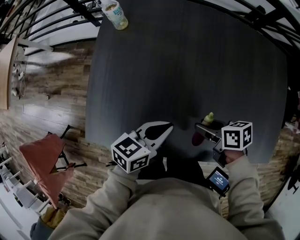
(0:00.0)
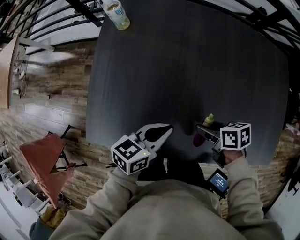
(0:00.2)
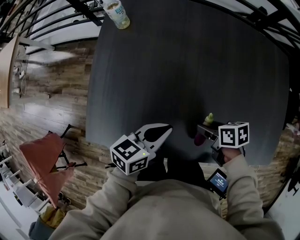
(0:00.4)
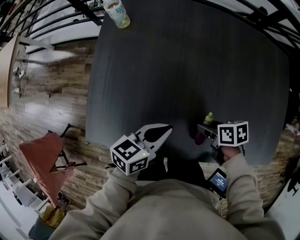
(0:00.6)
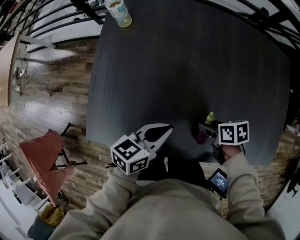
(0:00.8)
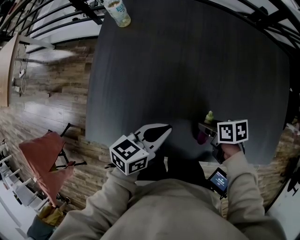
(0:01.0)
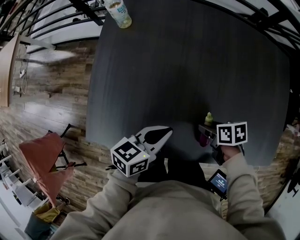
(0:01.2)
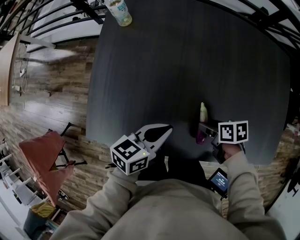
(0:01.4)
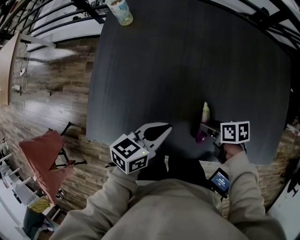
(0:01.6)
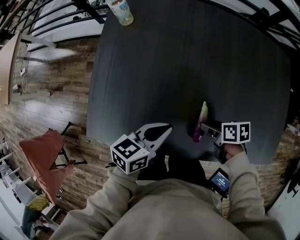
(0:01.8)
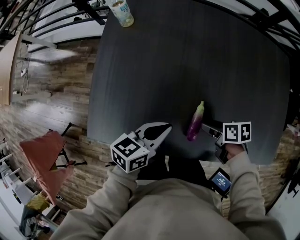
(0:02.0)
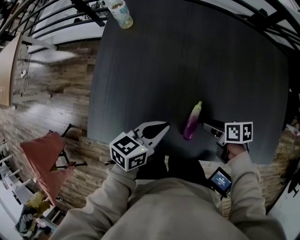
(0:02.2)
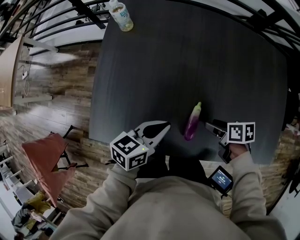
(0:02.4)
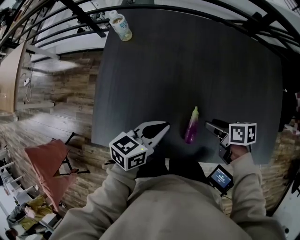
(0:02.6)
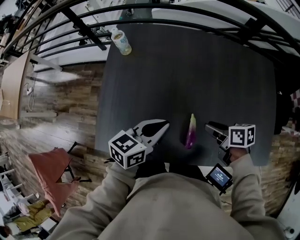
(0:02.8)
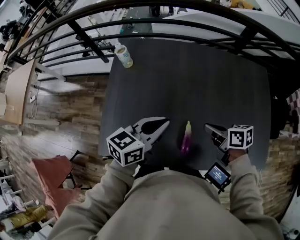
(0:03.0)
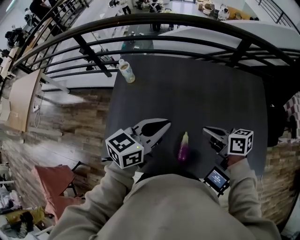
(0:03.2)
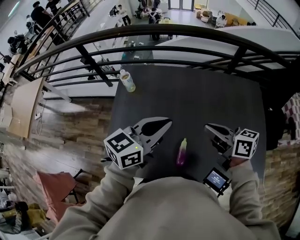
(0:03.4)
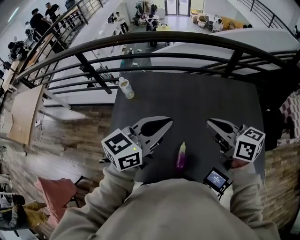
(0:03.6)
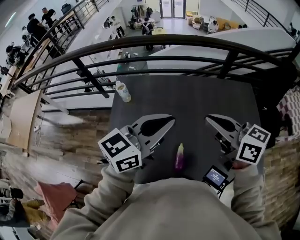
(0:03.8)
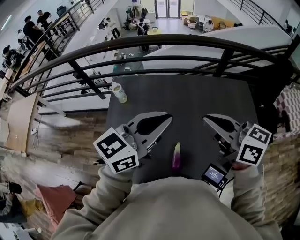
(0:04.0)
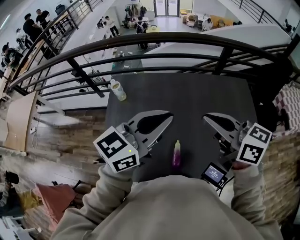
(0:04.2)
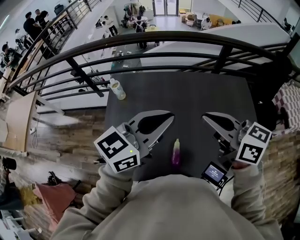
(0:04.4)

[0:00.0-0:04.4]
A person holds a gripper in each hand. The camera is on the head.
0:00.0 to 0:01.4: The right gripper moves downward, about 5 cm.
0:01.4 to 0:03.0: Both grippers travel together upward, about 15 cm. The right gripper changes its angle by some 30 degrees, and closes up.
0:03.0 to 0:04.4: Both grippers move upward, roughly 25 cm. The right gripper changes its angle by approximately 40 degrees. Meanwhile the left gripper changes its angle by about 30 degrees.

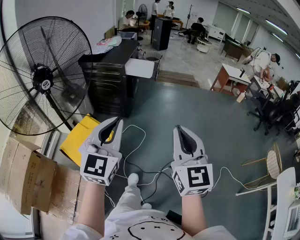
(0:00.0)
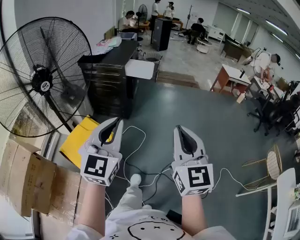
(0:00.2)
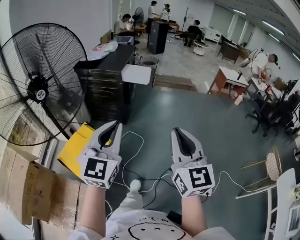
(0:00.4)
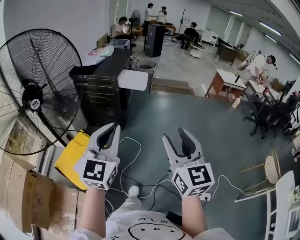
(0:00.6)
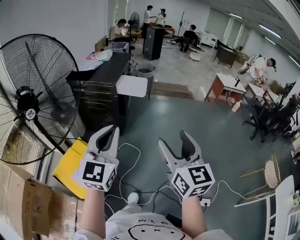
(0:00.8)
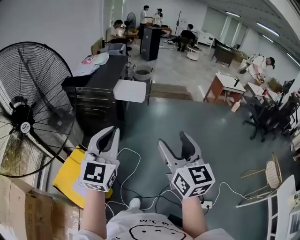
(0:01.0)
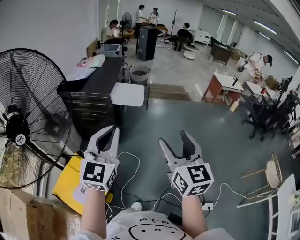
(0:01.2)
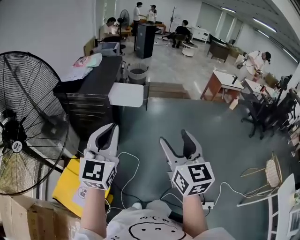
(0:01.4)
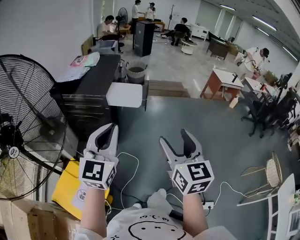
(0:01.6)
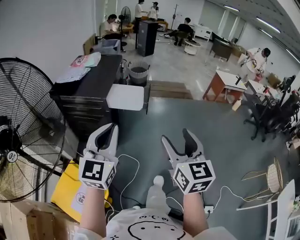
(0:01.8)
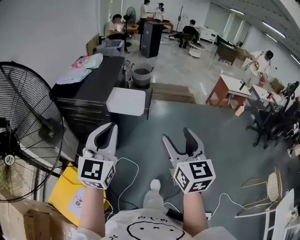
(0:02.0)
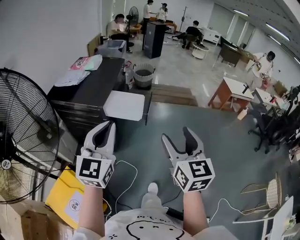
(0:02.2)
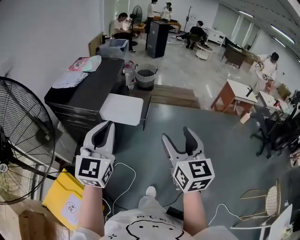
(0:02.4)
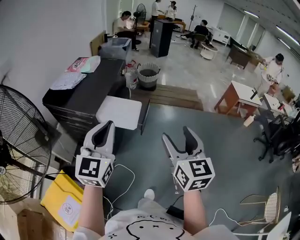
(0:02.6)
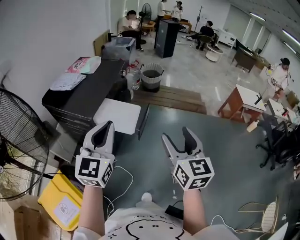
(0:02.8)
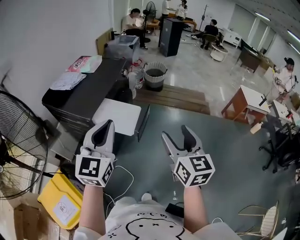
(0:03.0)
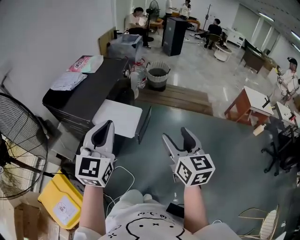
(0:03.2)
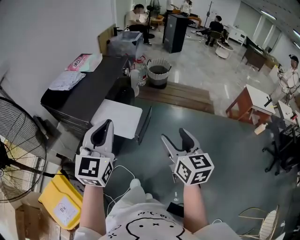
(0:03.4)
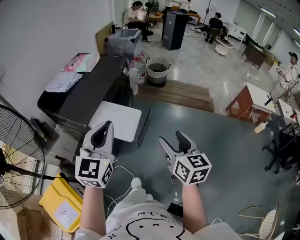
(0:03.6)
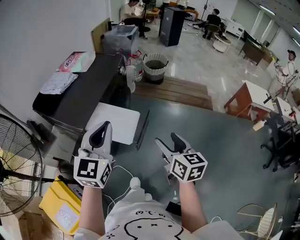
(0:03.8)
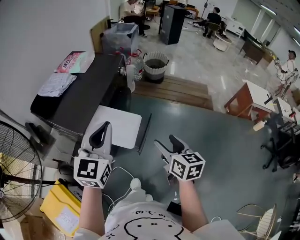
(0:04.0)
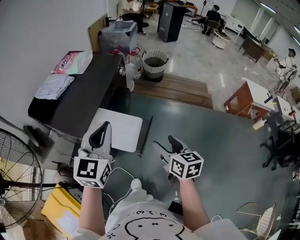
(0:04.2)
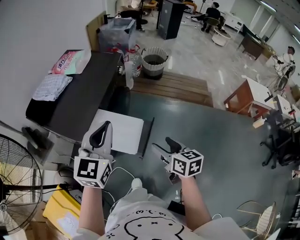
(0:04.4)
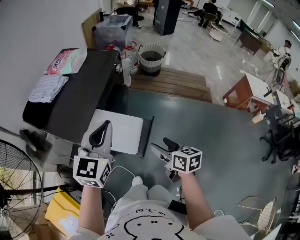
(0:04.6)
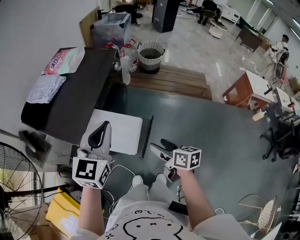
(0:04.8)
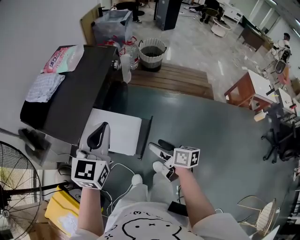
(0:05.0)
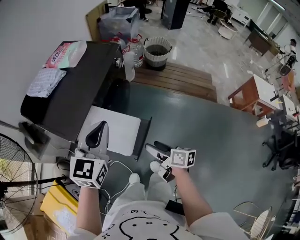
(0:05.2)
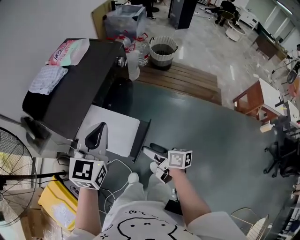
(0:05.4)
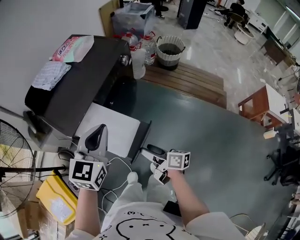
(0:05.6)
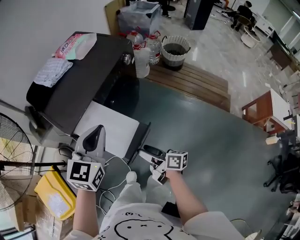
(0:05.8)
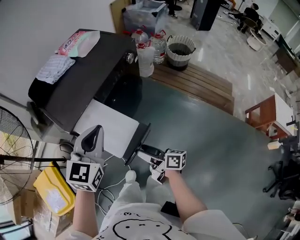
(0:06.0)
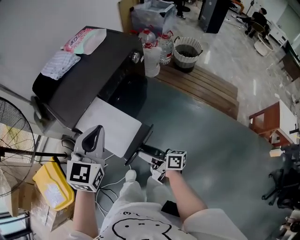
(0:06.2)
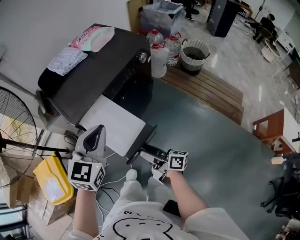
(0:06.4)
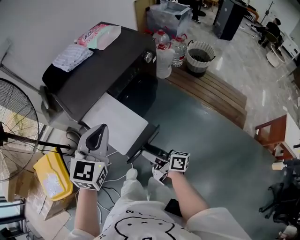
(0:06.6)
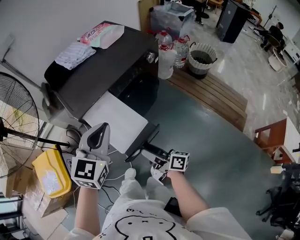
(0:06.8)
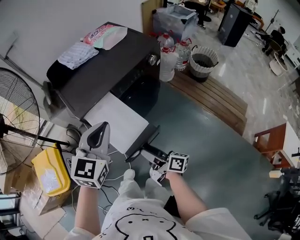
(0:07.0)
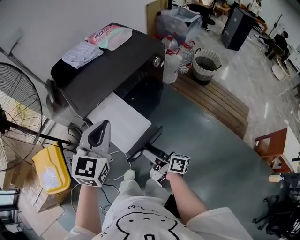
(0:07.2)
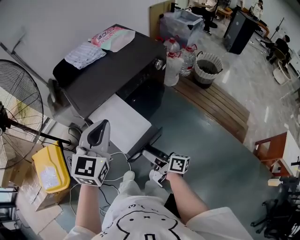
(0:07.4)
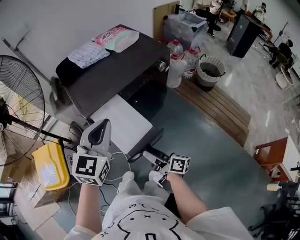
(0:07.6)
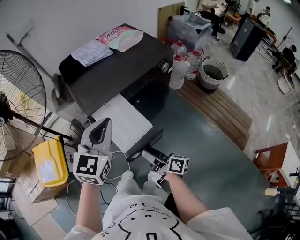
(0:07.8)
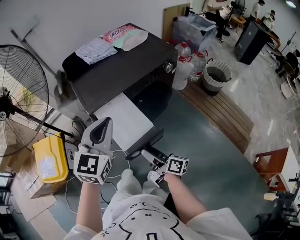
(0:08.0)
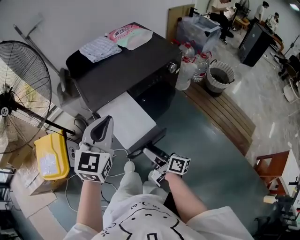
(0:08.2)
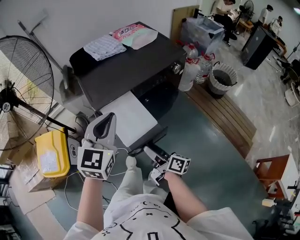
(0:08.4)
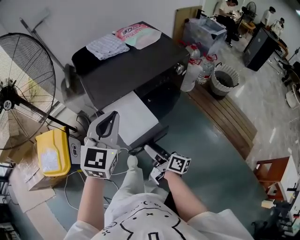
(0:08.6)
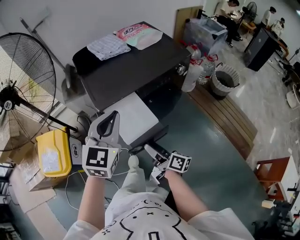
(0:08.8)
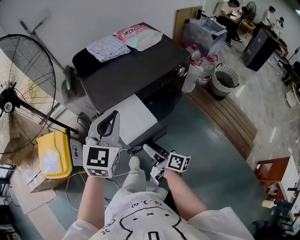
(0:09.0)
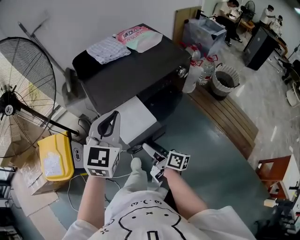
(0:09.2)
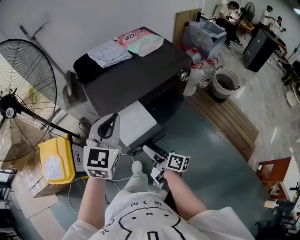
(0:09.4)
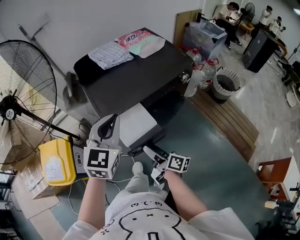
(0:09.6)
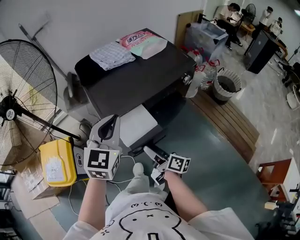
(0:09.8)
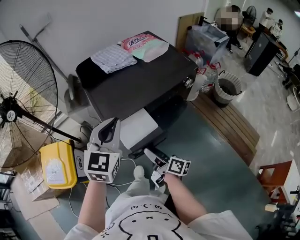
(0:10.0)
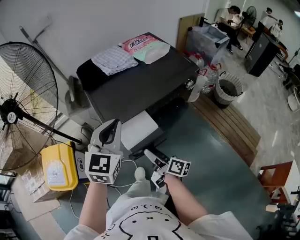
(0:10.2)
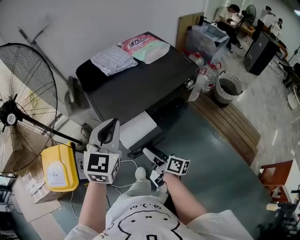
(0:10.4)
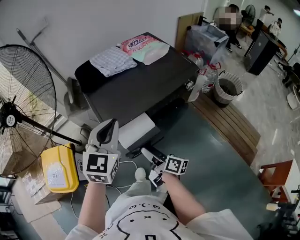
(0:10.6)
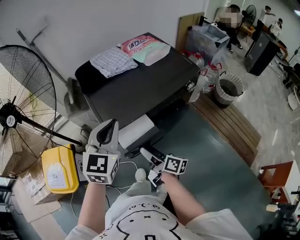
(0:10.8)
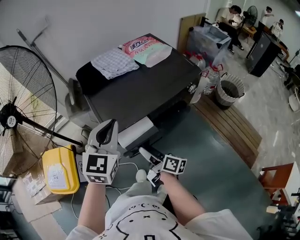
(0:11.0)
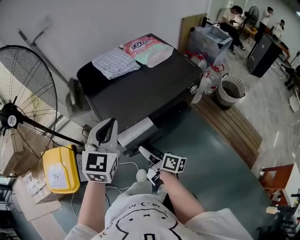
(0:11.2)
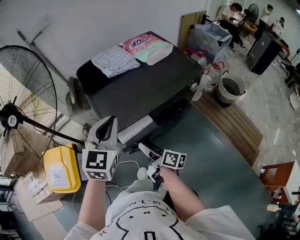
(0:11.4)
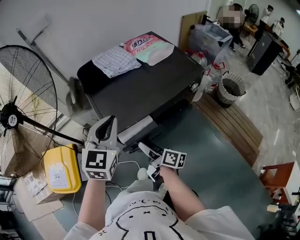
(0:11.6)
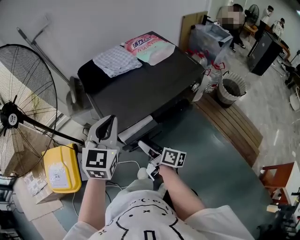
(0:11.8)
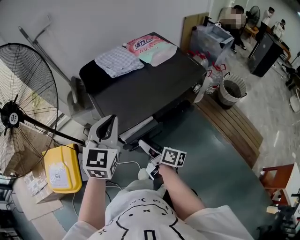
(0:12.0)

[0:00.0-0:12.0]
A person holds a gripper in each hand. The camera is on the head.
0:00.0 to 0:01.6: The grippers both shift forward by some 35 cm. The right gripper opens up.
0:01.6 to 0:03.0: The grippers both shift forward by roughly 30 cm.
0:03.0 to 0:04.4: The left gripper is displaced forward by some 20 cm. Meanwhile the right gripper goes roughly 25 cm downward and forward, and turns by about 30 degrees.
0:04.4 to 0:06.0: The left gripper moves downward, some 5 cm. Meanwhile the right gripper travels downward by some 10 cm, and rotates some 50 degrees.
0:06.0 to 0:07.6: The grippers make only small movements.
0:07.6 to 0:09.0: The right gripper moves forward, roughly 5 cm.
0:09.0 to 0:10.4: Both grippers travel together forward, some 5 cm.
0:10.4 to 0:12.0: The left gripper moves about 5 cm. The right gripper shifts some 5 cm forward.

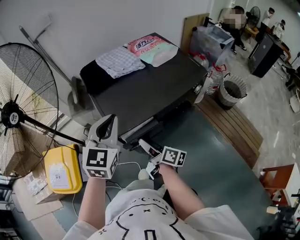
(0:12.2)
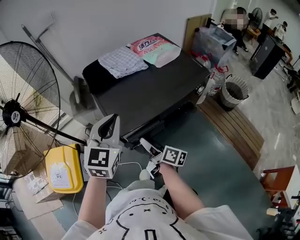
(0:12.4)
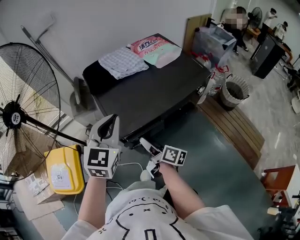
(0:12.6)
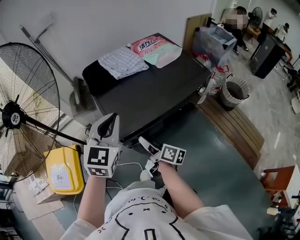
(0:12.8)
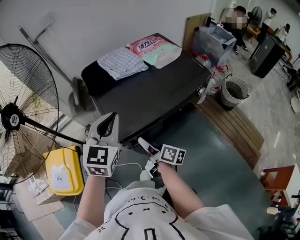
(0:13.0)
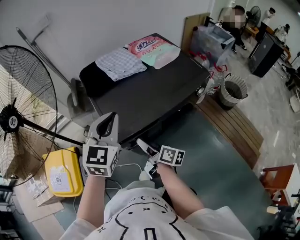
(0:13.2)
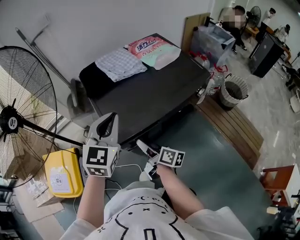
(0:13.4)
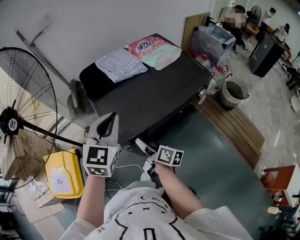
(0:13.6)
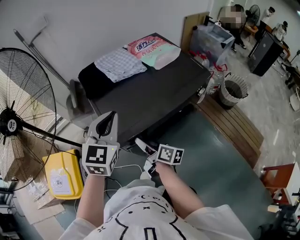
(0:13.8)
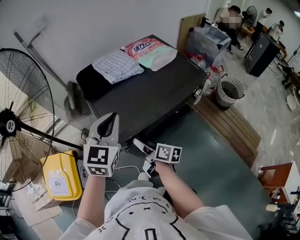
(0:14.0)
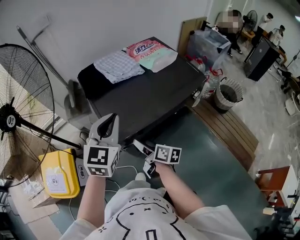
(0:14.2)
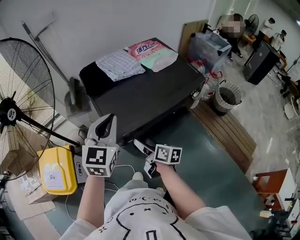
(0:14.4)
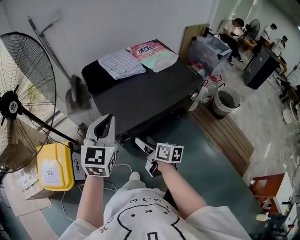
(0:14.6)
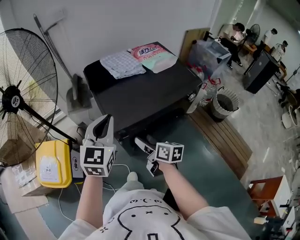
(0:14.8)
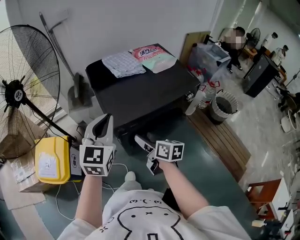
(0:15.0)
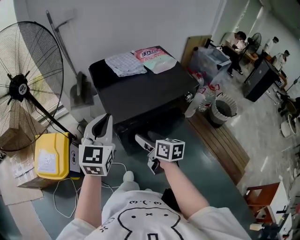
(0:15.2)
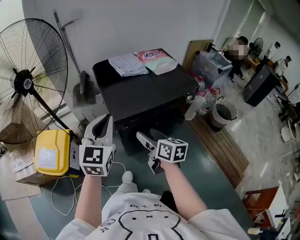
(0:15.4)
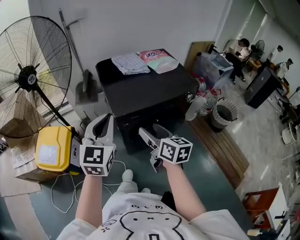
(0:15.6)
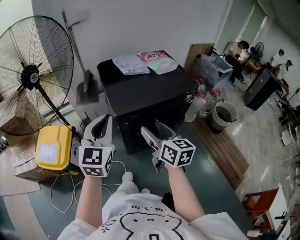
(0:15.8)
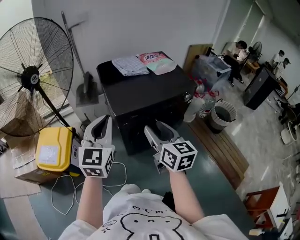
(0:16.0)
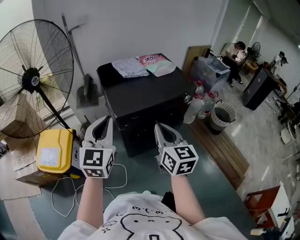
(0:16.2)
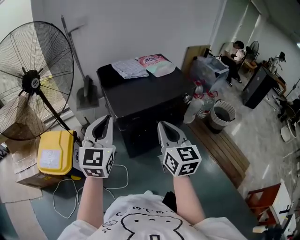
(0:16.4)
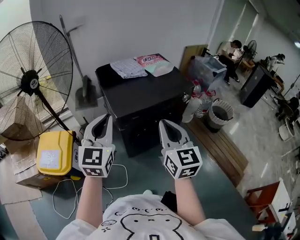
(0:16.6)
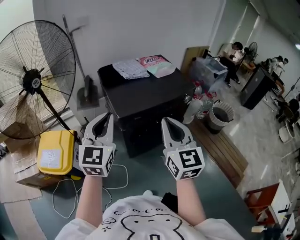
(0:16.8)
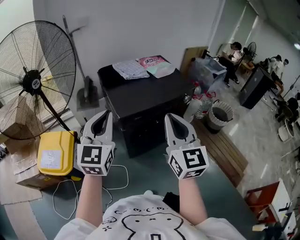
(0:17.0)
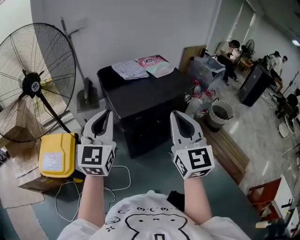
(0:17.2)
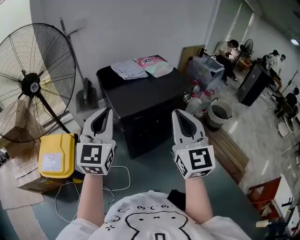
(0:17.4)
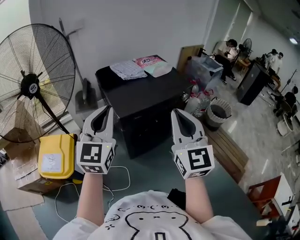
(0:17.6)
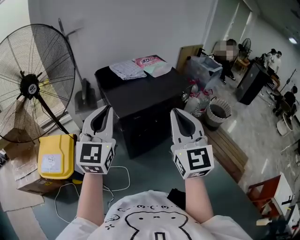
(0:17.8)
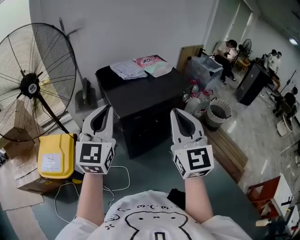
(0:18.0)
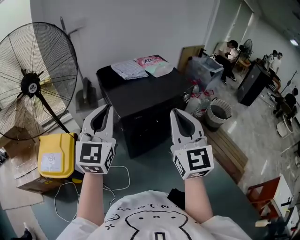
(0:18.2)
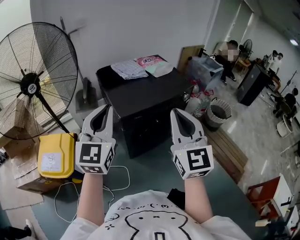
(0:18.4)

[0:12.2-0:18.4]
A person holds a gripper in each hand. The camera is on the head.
0:12.2 to 0:13.8: The right gripper ends up about 5 cm from where it was, while the left gripper goes roughly 5 cm forward.
0:13.8 to 0:15.4: The right gripper travels upward and backward by some 15 cm, and turns by about 30 degrees; the left gripper travels backward by some 15 cm.
0:15.4 to 0:16.8: The right gripper moves upward and backward, roughly 20 cm, rotates roughly 50 degrees, and closes, while the left gripper moves backward, approximately 5 cm.
0:16.8 to 0:18.4: The right gripper moves upward, some 5 cm.

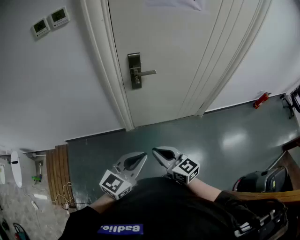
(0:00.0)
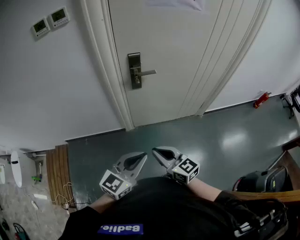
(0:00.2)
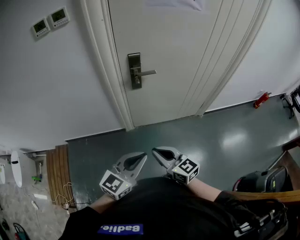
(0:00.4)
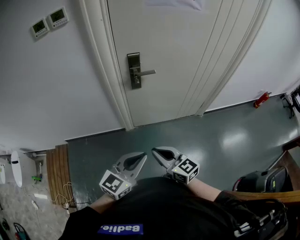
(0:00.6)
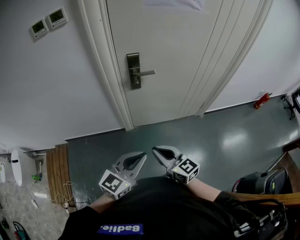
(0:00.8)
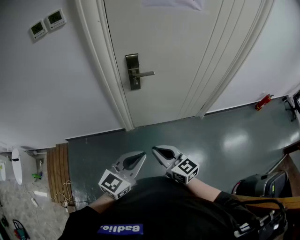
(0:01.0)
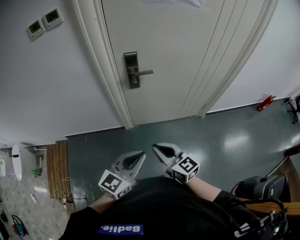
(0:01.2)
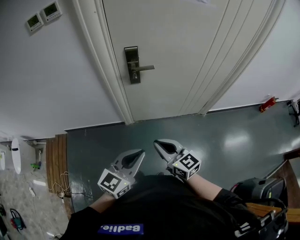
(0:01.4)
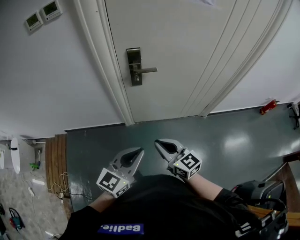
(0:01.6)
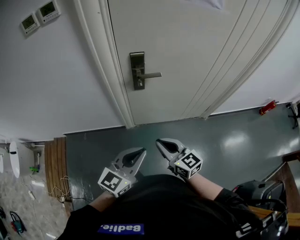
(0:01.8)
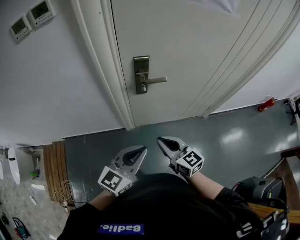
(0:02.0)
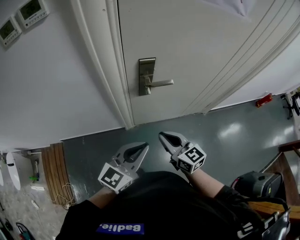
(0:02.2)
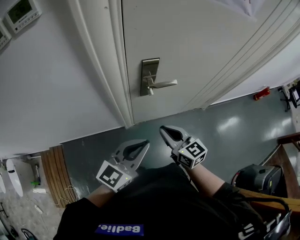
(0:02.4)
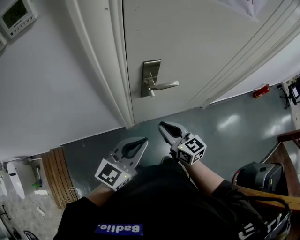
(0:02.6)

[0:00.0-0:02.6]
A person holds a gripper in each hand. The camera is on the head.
0:00.0 to 0:01.2: The right gripper moves roughly 5 cm.
0:01.2 to 0:02.6: The right gripper heads forward, covering approximately 25 cm, while the left gripper heads forward and to the left, covering approximately 30 cm.
